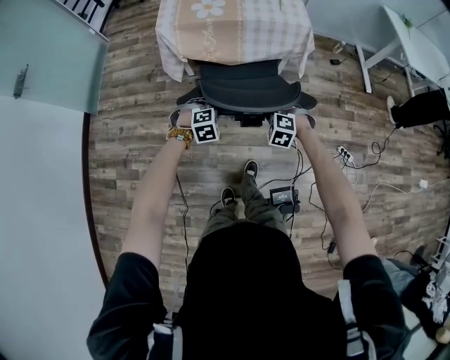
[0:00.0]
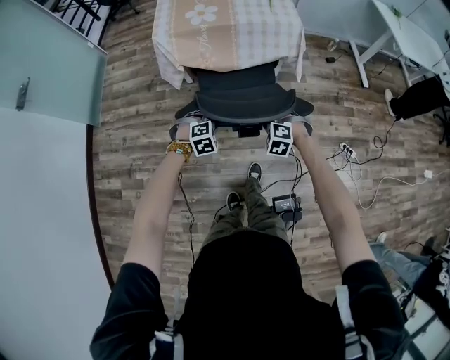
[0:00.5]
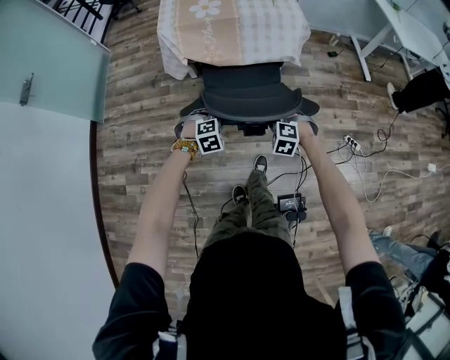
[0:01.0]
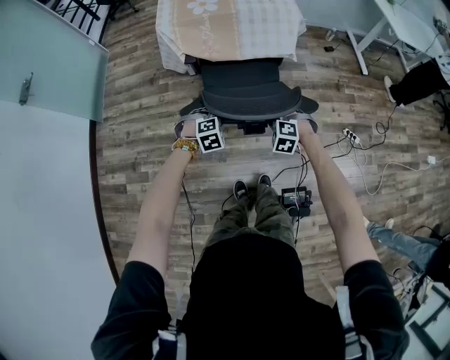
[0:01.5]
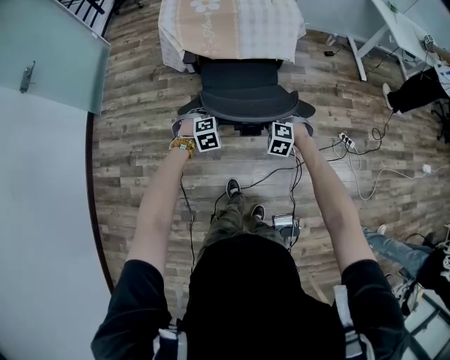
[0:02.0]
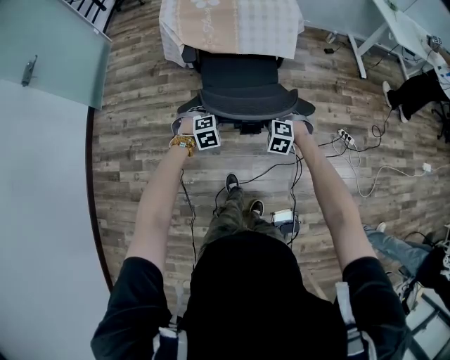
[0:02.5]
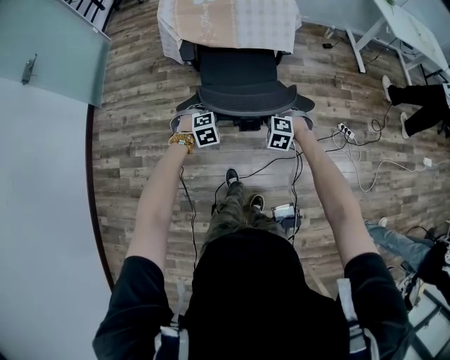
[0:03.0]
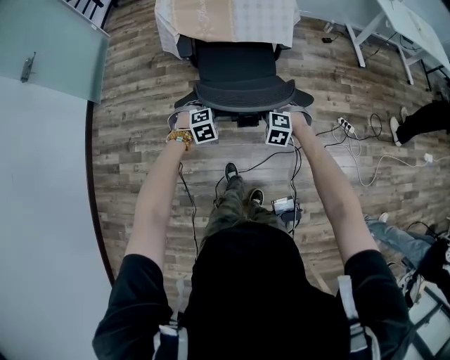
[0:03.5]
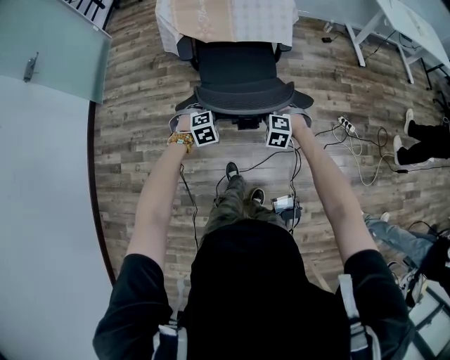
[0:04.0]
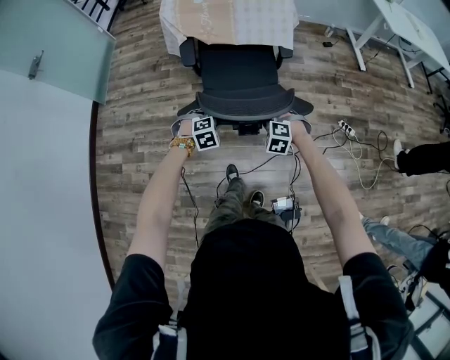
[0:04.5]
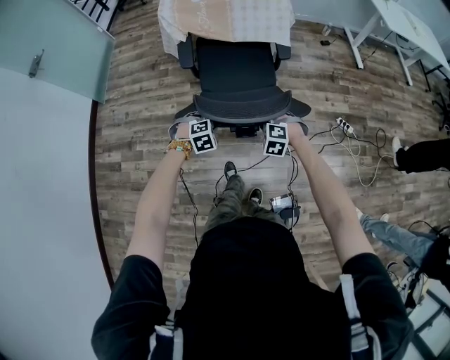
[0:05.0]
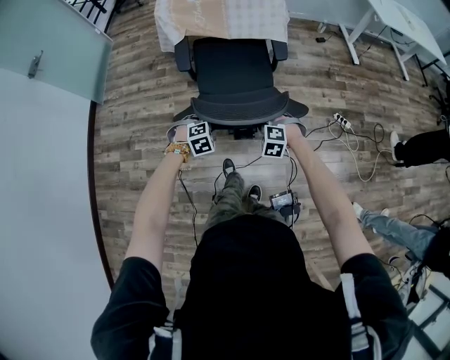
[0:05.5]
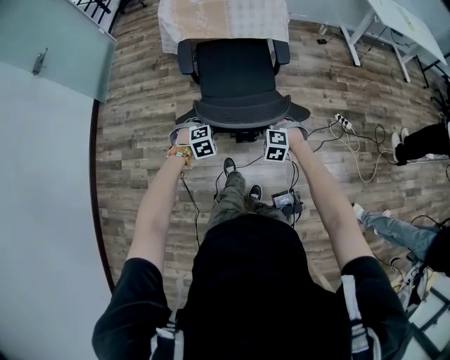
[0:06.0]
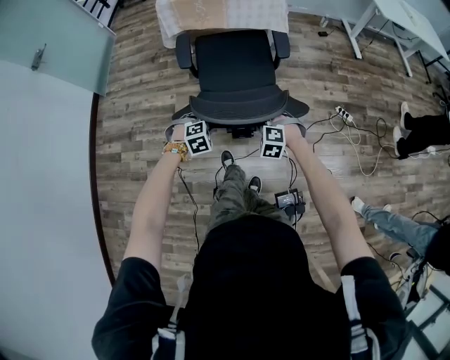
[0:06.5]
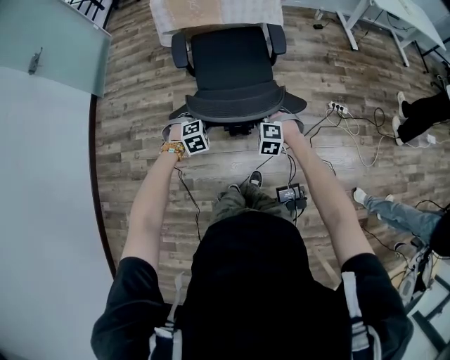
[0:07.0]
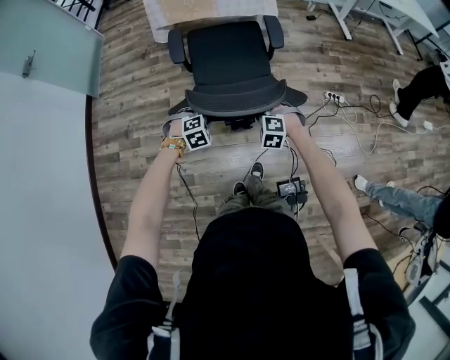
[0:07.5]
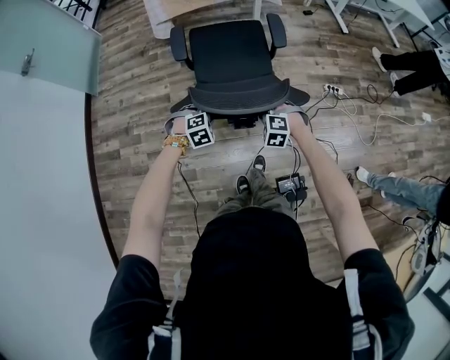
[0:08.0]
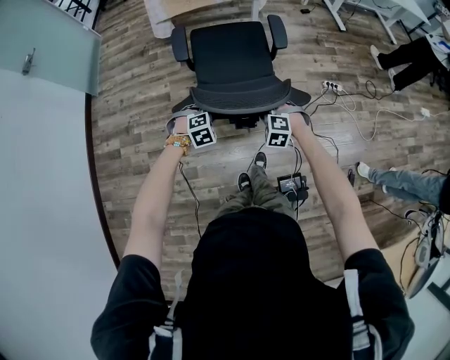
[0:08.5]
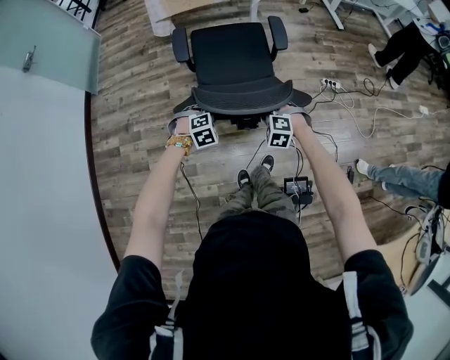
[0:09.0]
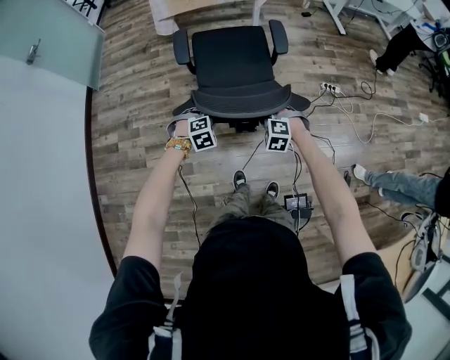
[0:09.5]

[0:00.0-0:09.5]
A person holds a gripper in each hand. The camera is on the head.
0:00.0 to 0:02.0: The two grippers go some 15 cm backward.
0:02.0 to 0:04.0: The two grippers go about 10 cm backward.
0:04.0 to 0:05.5: The grippers both shift backward by about 10 cm.
0:05.5 to 0:07.5: The two grippers go approximately 10 cm backward.
0:07.5 to 0:09.5: The grippers both shift backward by approximately 15 cm.

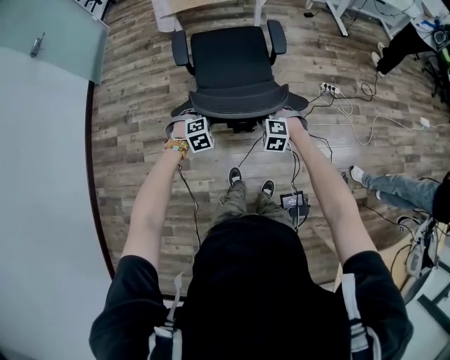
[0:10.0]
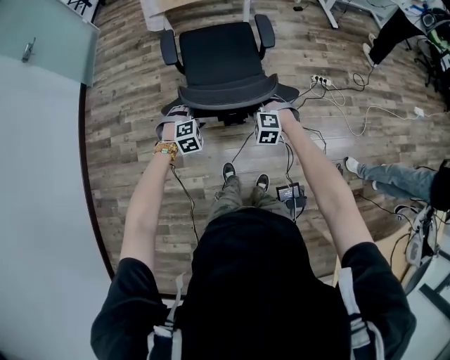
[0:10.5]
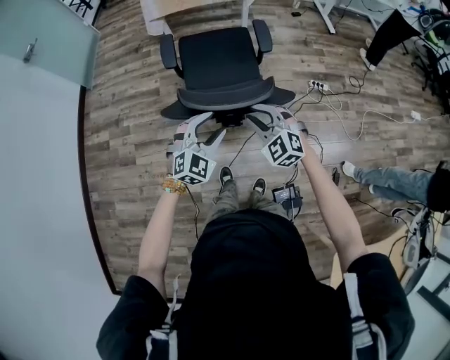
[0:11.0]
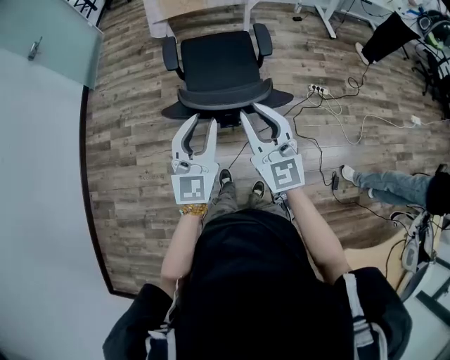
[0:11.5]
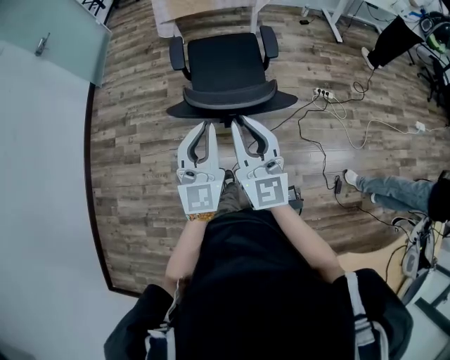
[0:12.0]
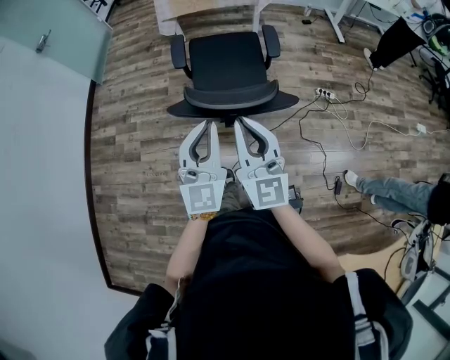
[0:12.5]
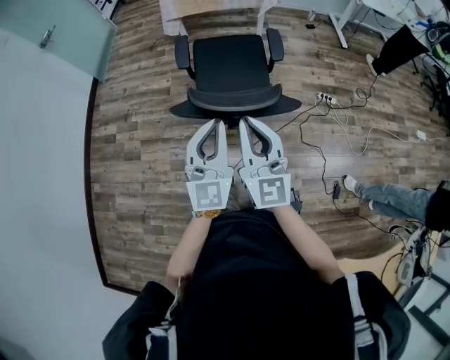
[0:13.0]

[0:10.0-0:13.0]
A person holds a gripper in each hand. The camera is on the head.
0:10.0 to 0:11.5: The grippers both shift upward by roughly 35 cm. The right gripper angles its fingers upward, by some 60 degrees, while the left gripper angles its fingers upward, by approximately 70 degrees, and opens, then closes once more.
0:11.5 to 0:13.0: The left gripper closes.

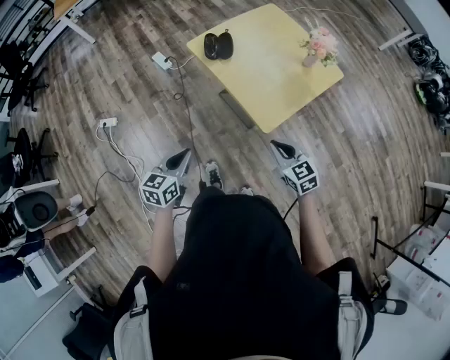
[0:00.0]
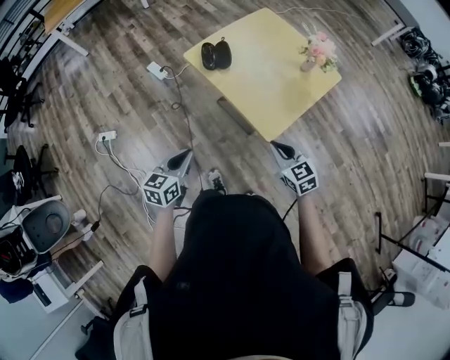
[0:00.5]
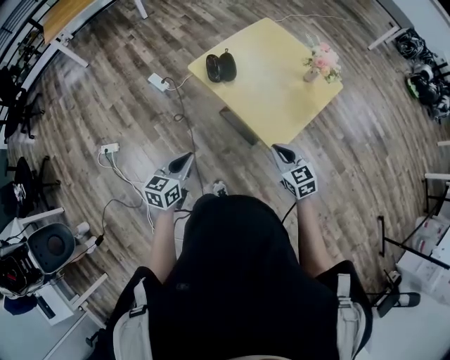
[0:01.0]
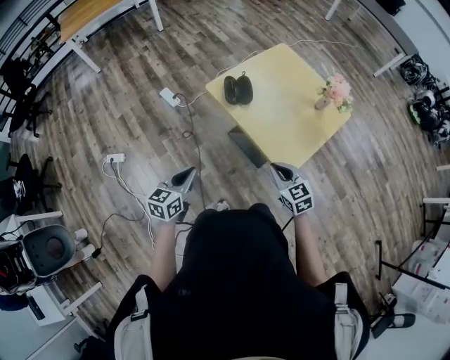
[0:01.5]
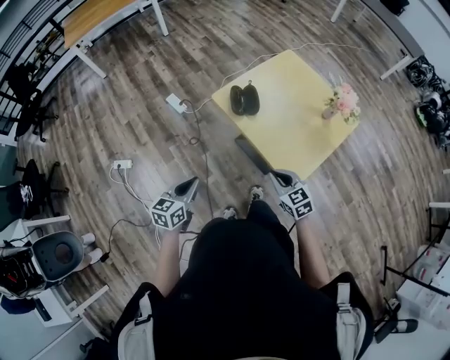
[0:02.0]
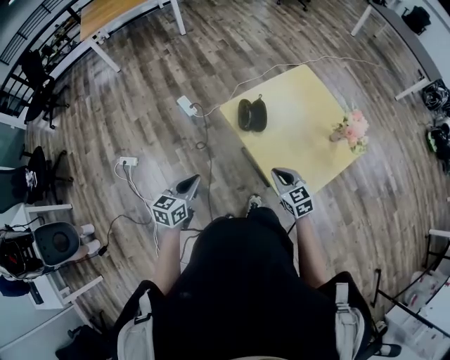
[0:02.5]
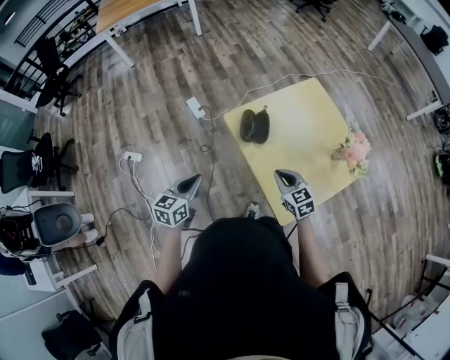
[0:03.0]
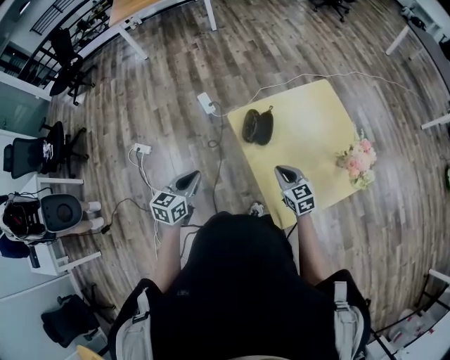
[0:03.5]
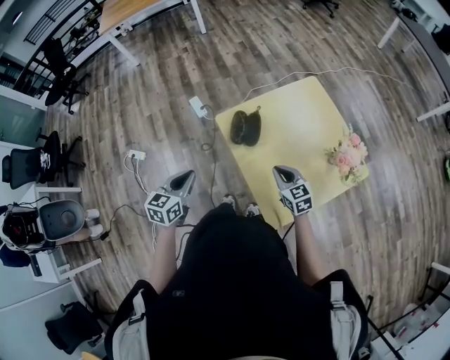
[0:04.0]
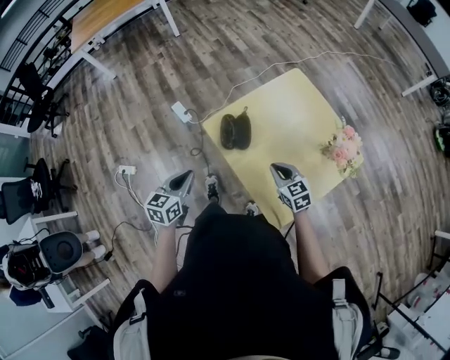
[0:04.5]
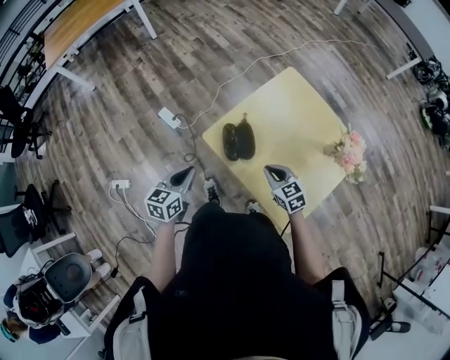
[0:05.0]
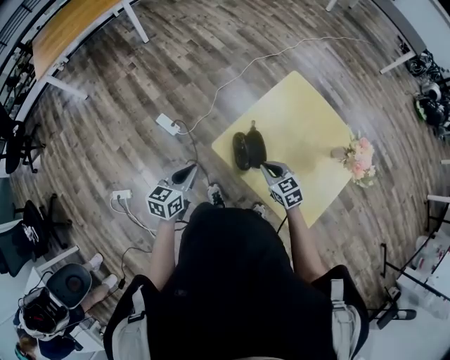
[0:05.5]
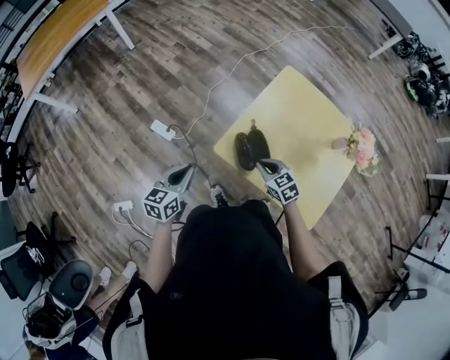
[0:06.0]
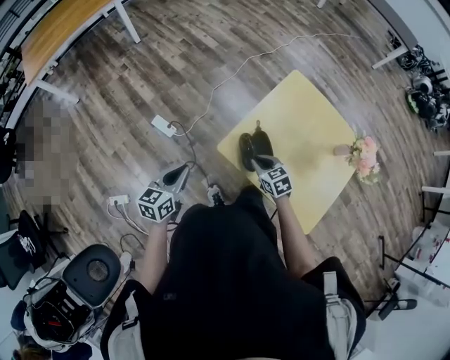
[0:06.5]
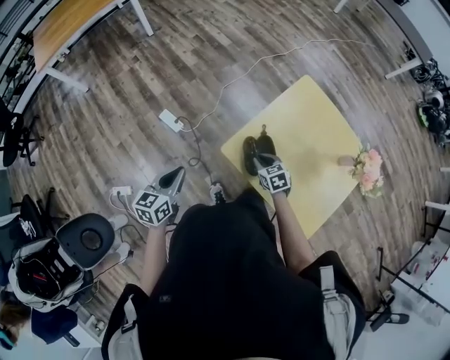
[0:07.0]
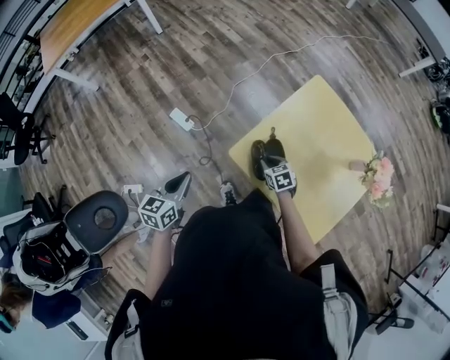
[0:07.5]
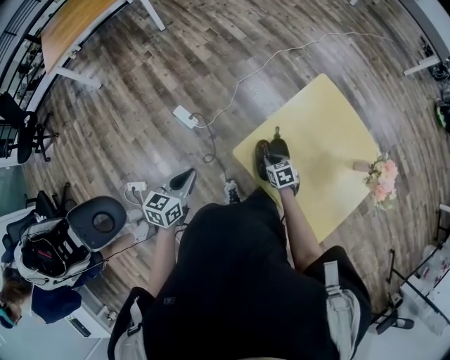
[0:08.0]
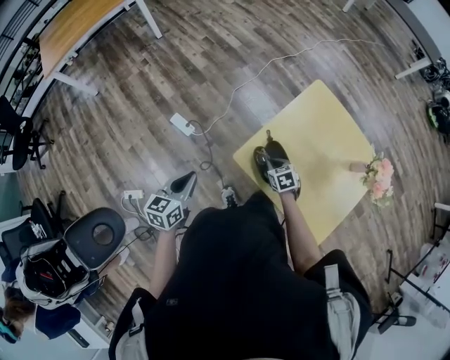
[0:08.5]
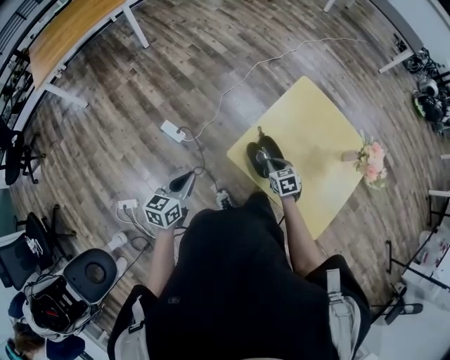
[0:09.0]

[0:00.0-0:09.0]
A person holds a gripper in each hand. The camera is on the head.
0:00.0 to 0:02.0: Both grippers travel together forward and to the left, about 20 cm.
0:02.0 to 0:04.5: Both grippers move forward and to the right, some 25 cm.
0:04.5 to 0:07.0: The left gripper moves to the left and forward, roughly 25 cm; the right gripper moves to the left, forward and downward, about 25 cm, and turns by about 20 degrees.
0:07.0 to 0:09.0: The grippers stay close to where they were, moving slightly.

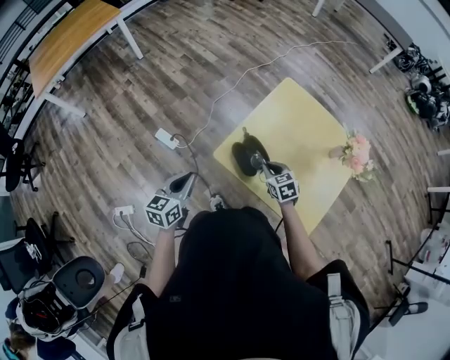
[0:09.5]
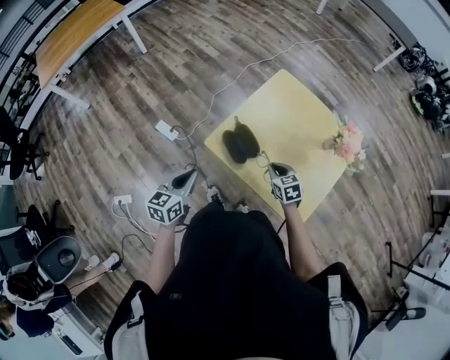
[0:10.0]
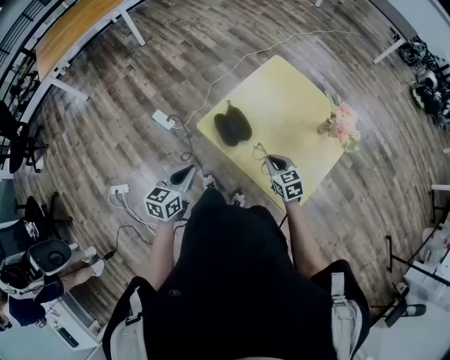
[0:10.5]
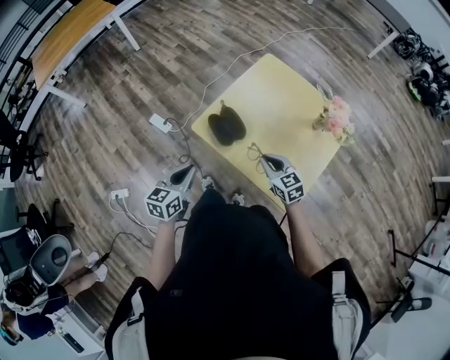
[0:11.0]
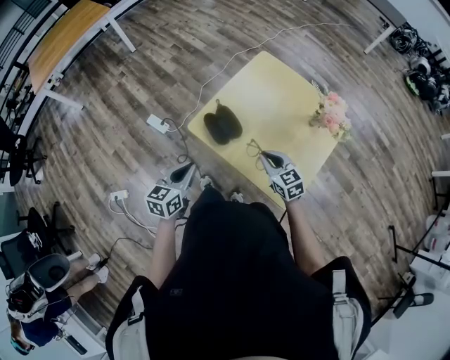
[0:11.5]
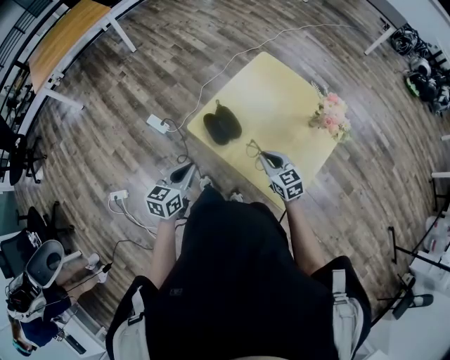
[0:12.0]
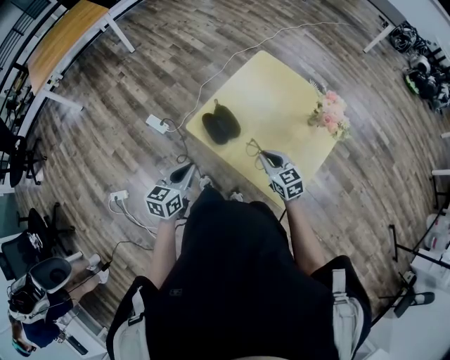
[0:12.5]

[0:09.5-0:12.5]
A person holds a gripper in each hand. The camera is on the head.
0:09.5 to 0:11.0: The left gripper goes roughly 15 cm to the right and backward. Meanwhile the right gripper is displaced backward and to the right by about 15 cm.
0:11.0 to 0:12.5: The grippers make only small movements.

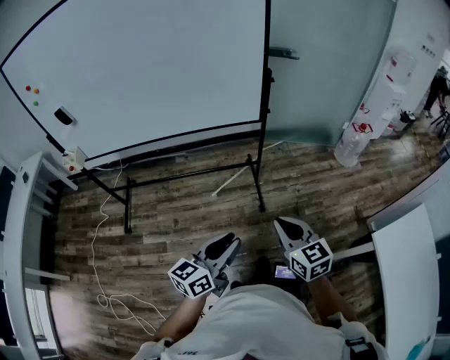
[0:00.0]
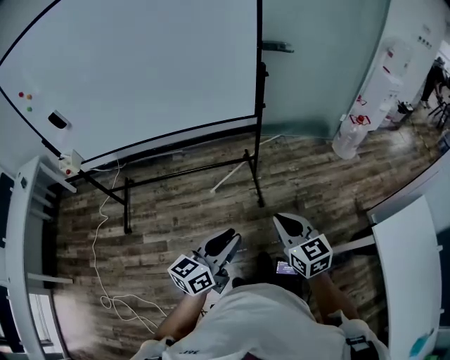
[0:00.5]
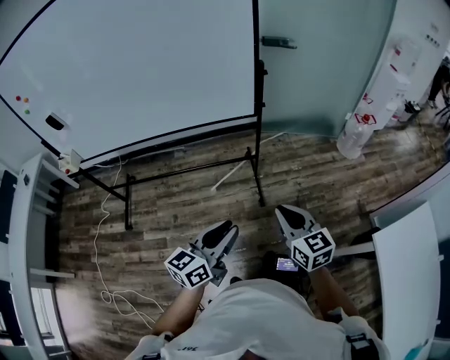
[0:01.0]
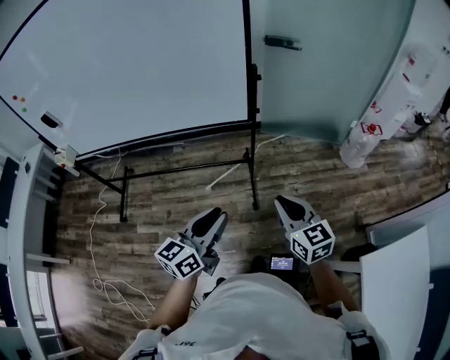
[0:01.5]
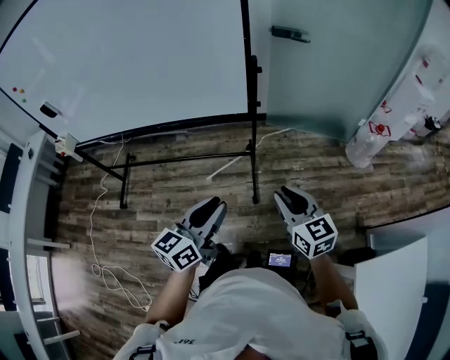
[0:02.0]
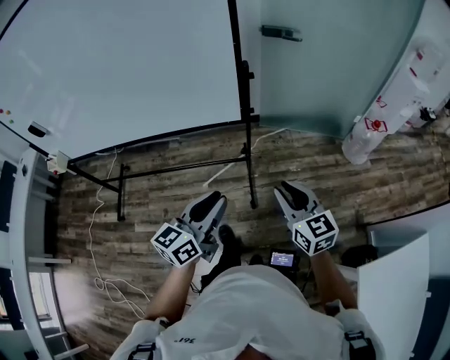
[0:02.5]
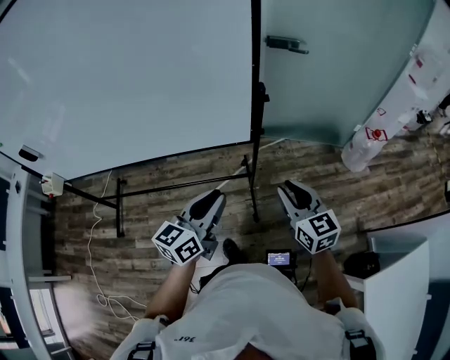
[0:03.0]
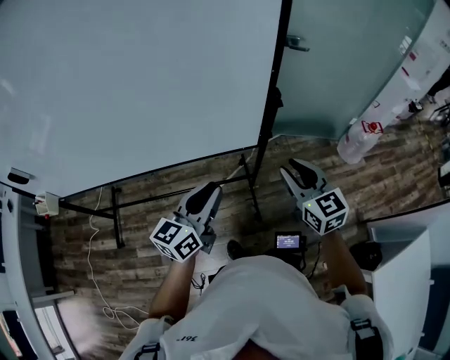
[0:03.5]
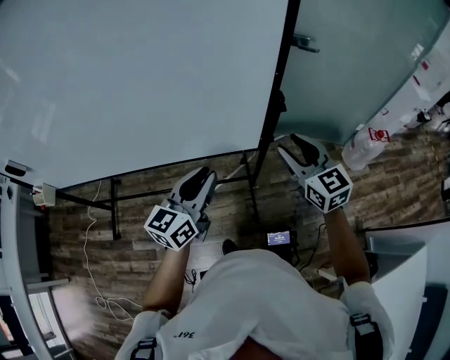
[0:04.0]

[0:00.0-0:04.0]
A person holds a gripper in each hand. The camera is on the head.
0:00.0 to 0:02.0: Both grippers move forward and to the right, some 20 cm.
0:02.0 to 0:04.0: Both grippers move forward, roughly 30 cm. The right gripper opens.
